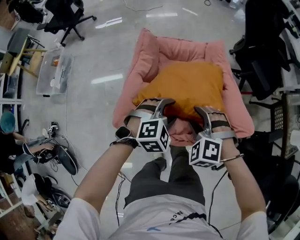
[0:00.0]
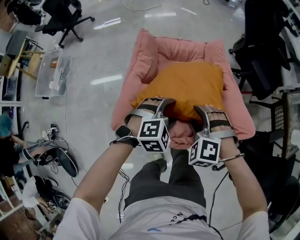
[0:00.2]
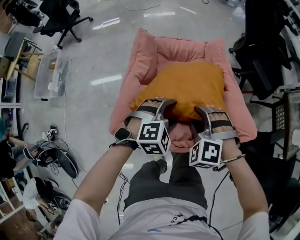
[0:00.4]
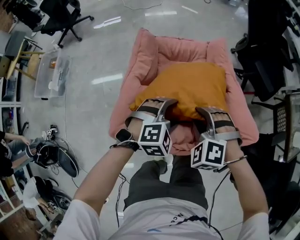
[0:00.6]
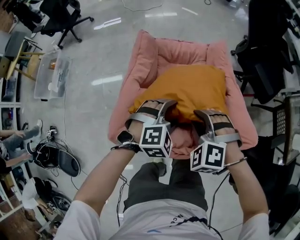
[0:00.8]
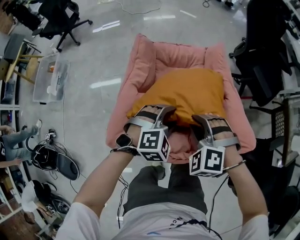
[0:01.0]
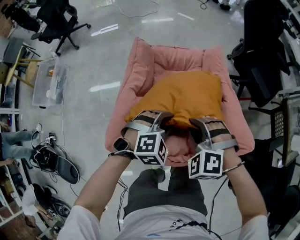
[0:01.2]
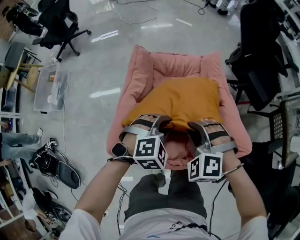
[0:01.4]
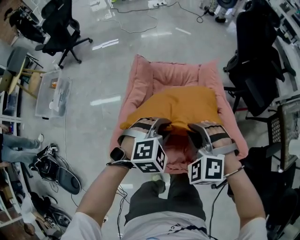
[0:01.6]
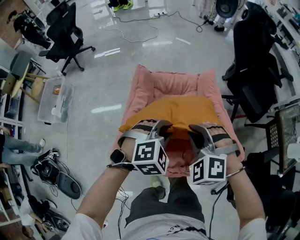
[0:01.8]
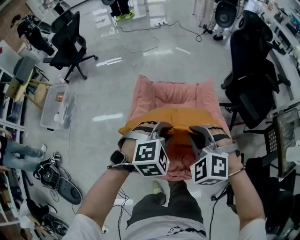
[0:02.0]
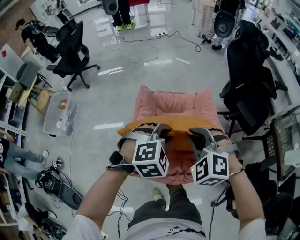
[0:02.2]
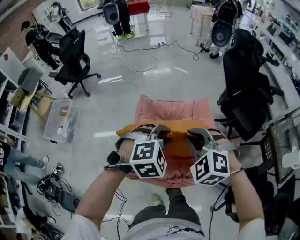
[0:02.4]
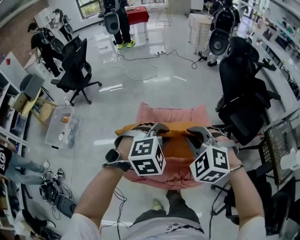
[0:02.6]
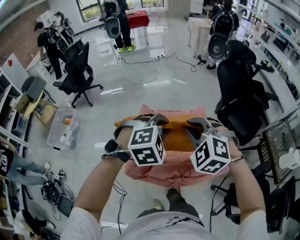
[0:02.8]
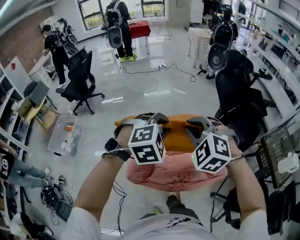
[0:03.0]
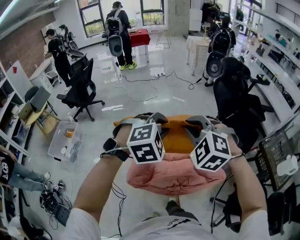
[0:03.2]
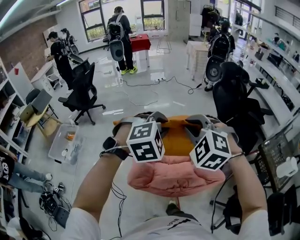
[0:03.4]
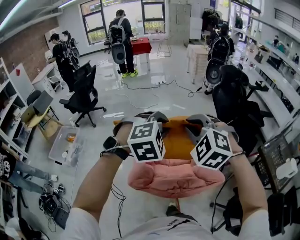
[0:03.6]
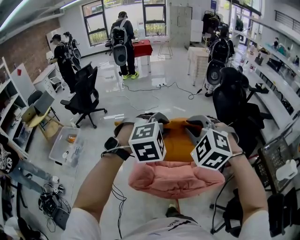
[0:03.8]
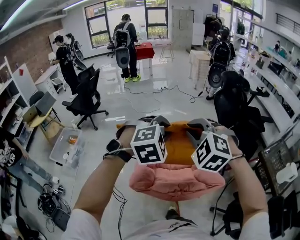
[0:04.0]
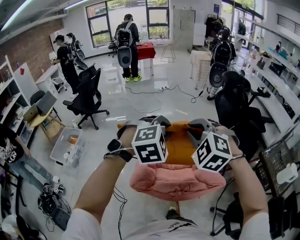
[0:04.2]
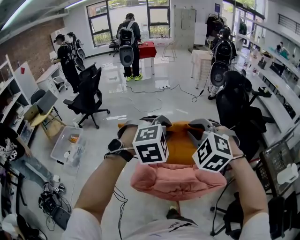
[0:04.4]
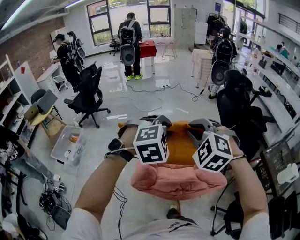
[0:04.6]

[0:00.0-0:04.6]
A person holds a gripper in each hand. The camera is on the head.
0:00.0 to 0:01.6: The left gripper travels forward by approximately 5 cm, and closes; the right gripper heads forward and upward, covering some 10 cm, and closes up.
0:01.6 to 0:03.0: The grippers both shift upward by approximately 30 cm.
0:03.0 to 0:04.6: The grippers both shift upward by about 5 cm.

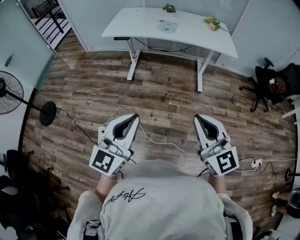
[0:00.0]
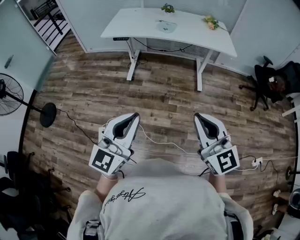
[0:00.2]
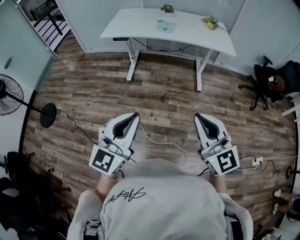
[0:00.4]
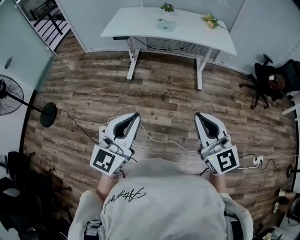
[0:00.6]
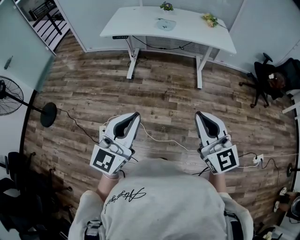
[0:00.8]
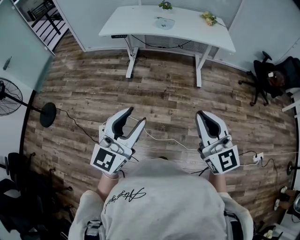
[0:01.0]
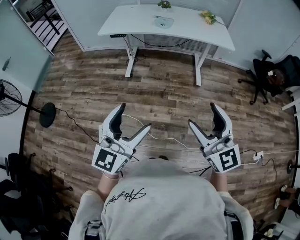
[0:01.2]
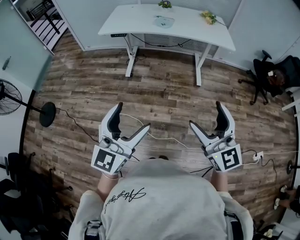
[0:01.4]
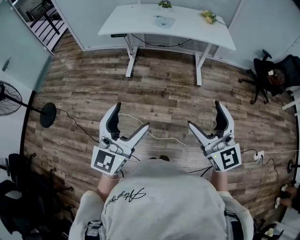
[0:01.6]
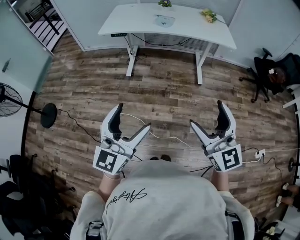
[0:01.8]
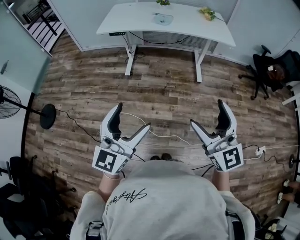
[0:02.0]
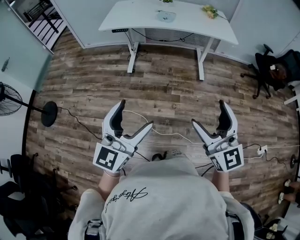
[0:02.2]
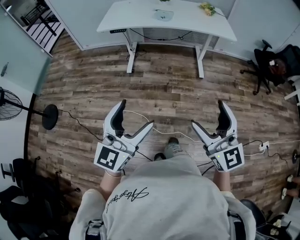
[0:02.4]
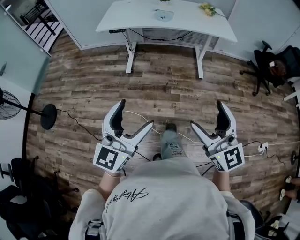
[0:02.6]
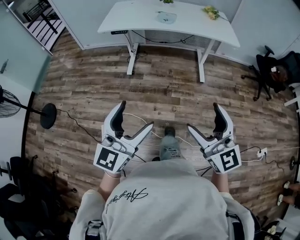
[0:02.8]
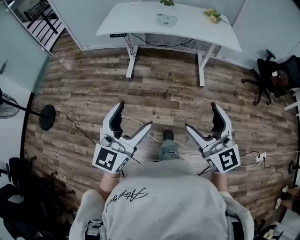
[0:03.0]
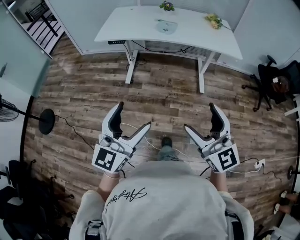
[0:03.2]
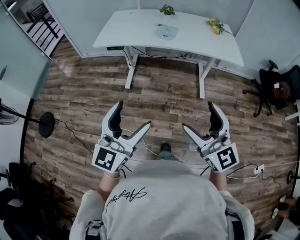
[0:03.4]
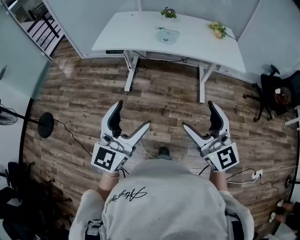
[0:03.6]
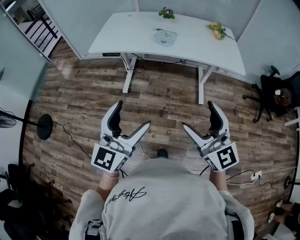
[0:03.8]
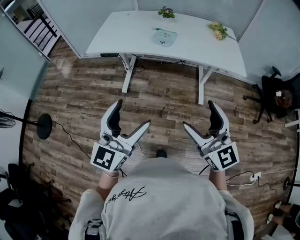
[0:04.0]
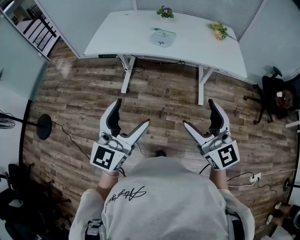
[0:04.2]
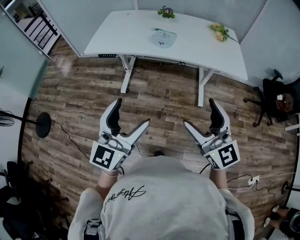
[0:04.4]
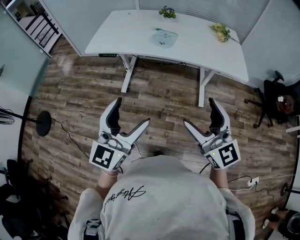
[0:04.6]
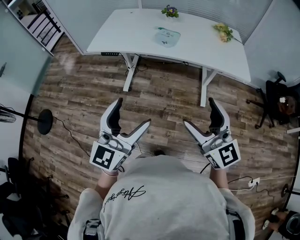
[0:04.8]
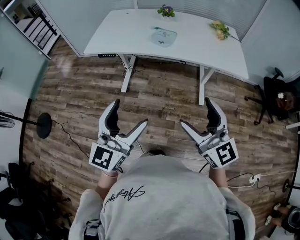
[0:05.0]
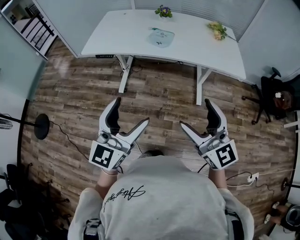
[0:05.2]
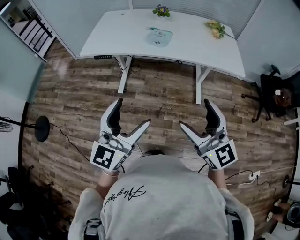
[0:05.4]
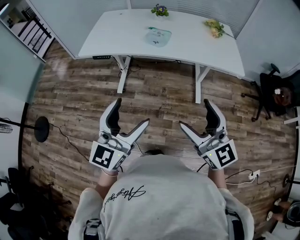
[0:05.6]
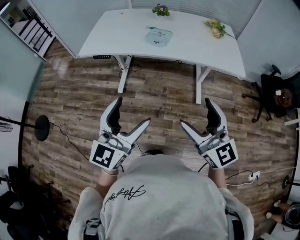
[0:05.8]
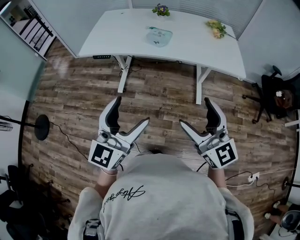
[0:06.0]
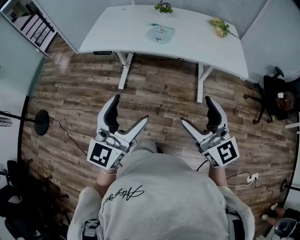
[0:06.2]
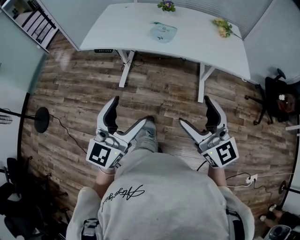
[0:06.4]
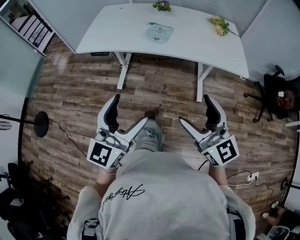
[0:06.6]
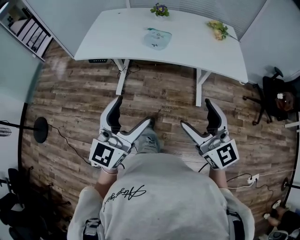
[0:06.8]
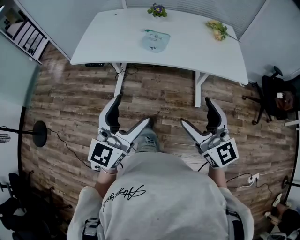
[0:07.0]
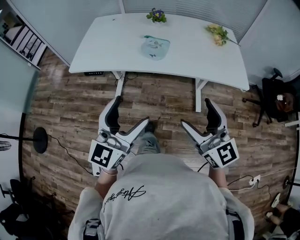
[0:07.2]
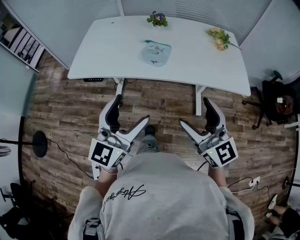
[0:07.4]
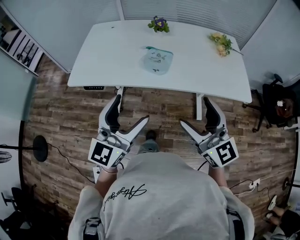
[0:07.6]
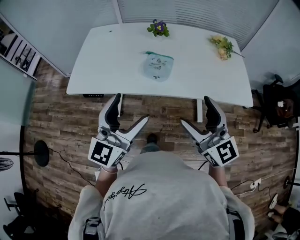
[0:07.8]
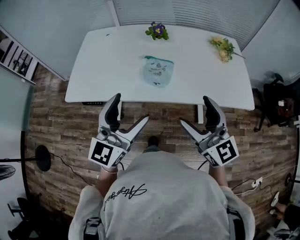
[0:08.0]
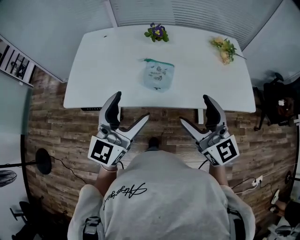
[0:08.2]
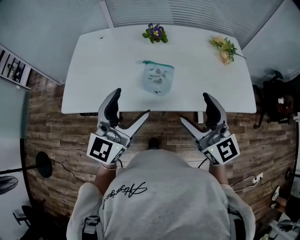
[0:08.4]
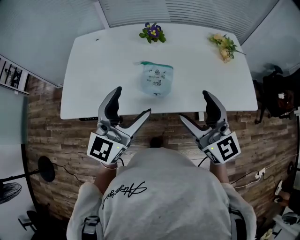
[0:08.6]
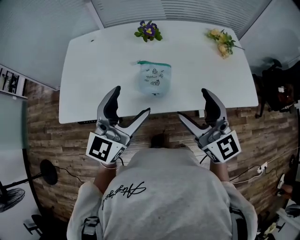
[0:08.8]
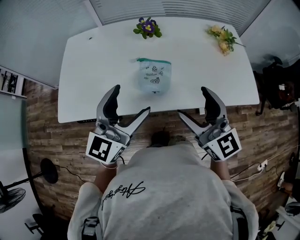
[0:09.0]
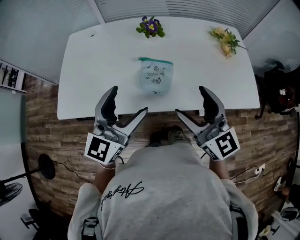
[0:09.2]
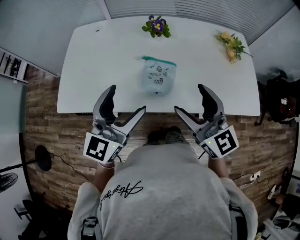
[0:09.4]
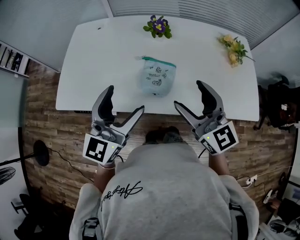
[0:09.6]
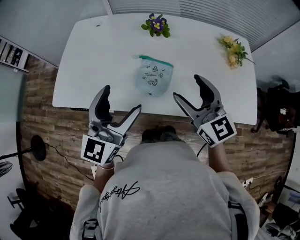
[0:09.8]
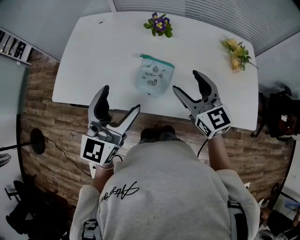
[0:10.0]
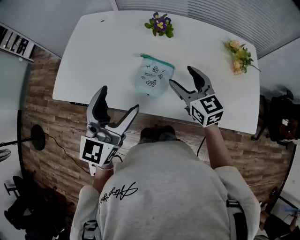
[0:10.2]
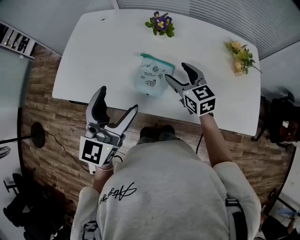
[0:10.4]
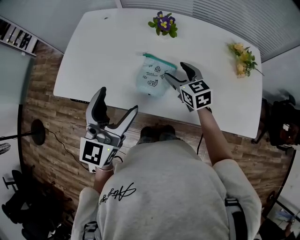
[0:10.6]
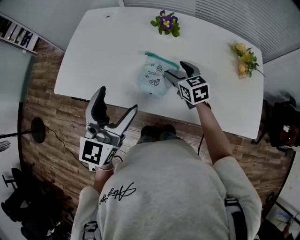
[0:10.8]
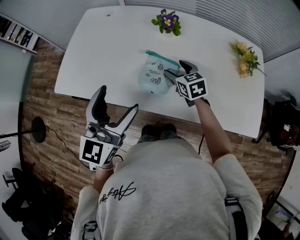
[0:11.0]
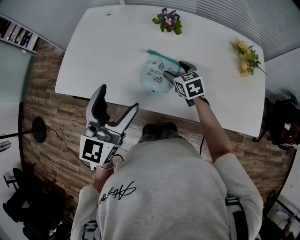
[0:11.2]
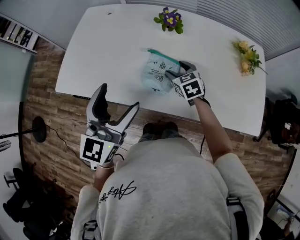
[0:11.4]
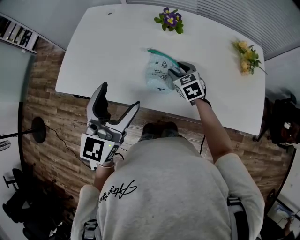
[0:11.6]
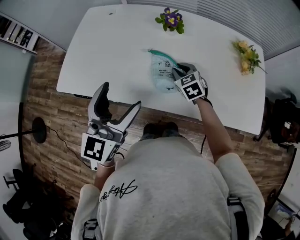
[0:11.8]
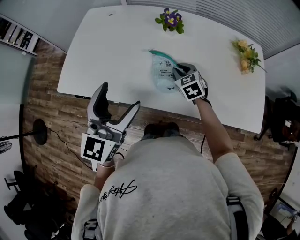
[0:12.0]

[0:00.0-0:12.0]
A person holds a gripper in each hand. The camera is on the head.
0:00.0 to 0:01.6: The left gripper opens. The right gripper opens its fingers.
0:01.6 to 0:03.0: Both grippers move forward, roughly 5 cm.
0:03.0 to 0:04.4: The grippers both shift forward by roughly 25 cm.
0:04.4 to 0:06.0: There are only small adjustments of the grippers.
0:06.0 to 0:07.6: The two grippers go roughly 20 cm forward.
0:07.6 to 0:09.0: Both grippers travel together forward, some 20 cm.
0:09.0 to 0:10.4: The right gripper moves forward and downward, roughly 20 cm, and swivels roughly 30 degrees; the left gripper swivels approximately 20 degrees.
0:10.4 to 0:12.0: The right gripper is displaced downward by some 10 cm, changes its angle by roughly 30 degrees, and closes.

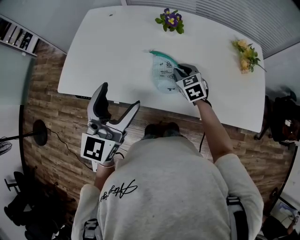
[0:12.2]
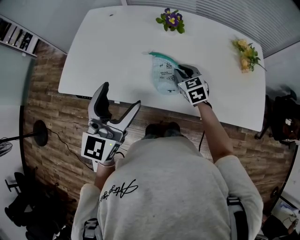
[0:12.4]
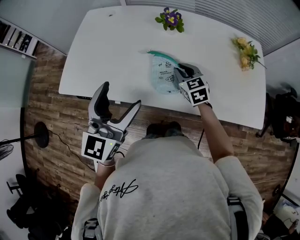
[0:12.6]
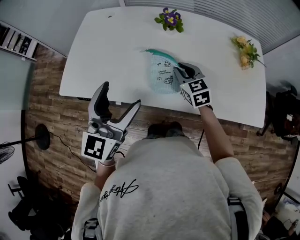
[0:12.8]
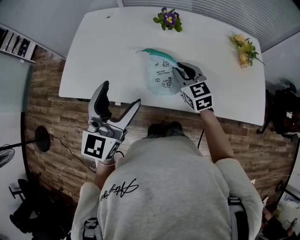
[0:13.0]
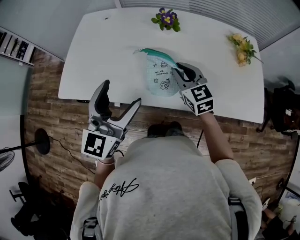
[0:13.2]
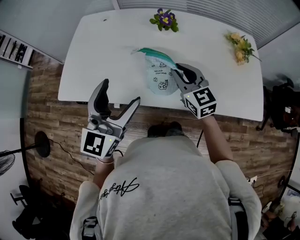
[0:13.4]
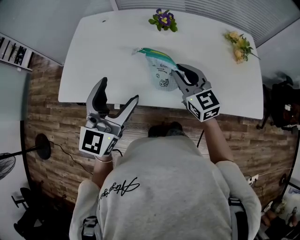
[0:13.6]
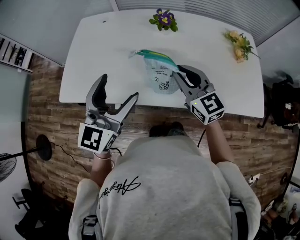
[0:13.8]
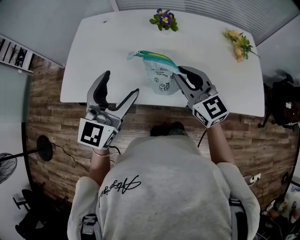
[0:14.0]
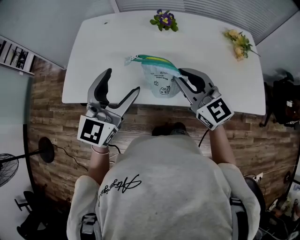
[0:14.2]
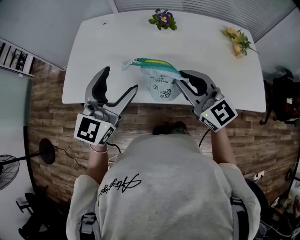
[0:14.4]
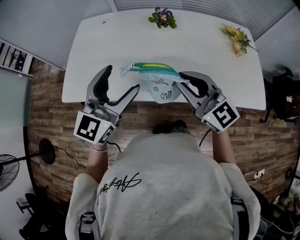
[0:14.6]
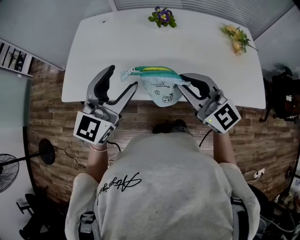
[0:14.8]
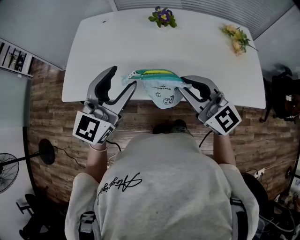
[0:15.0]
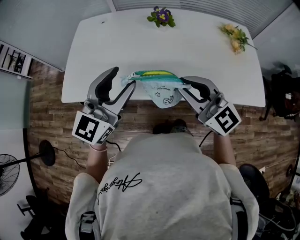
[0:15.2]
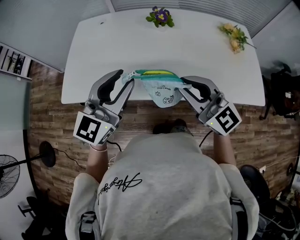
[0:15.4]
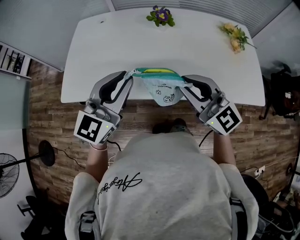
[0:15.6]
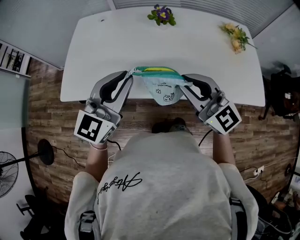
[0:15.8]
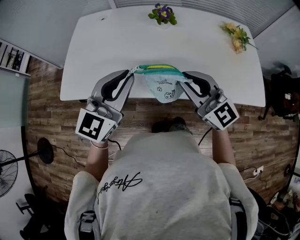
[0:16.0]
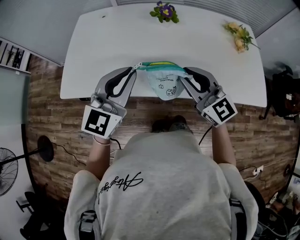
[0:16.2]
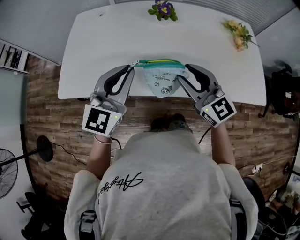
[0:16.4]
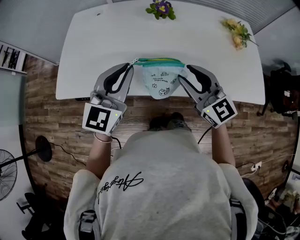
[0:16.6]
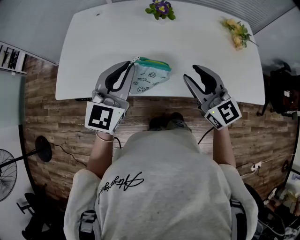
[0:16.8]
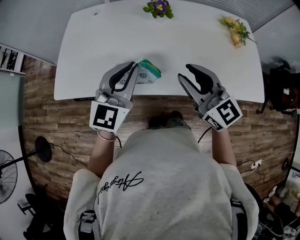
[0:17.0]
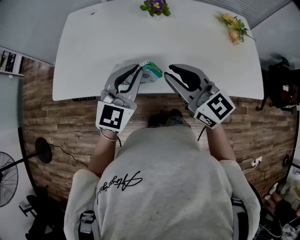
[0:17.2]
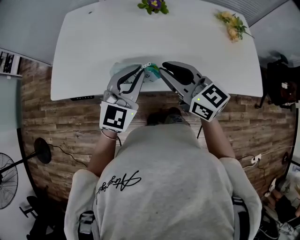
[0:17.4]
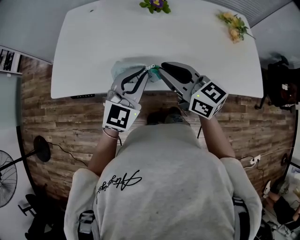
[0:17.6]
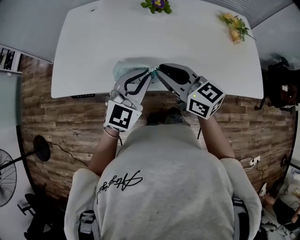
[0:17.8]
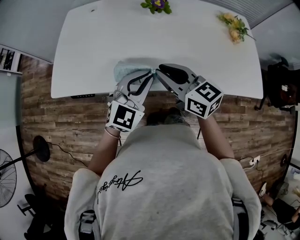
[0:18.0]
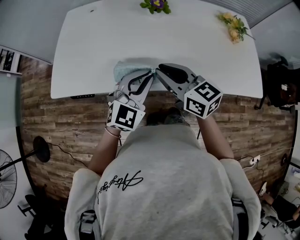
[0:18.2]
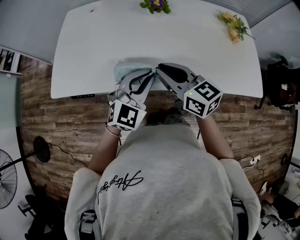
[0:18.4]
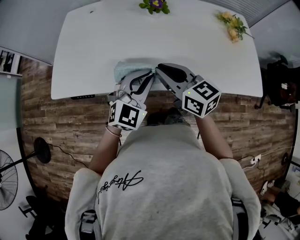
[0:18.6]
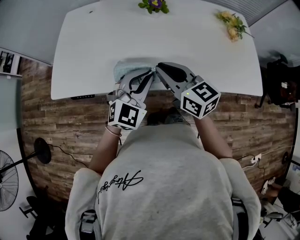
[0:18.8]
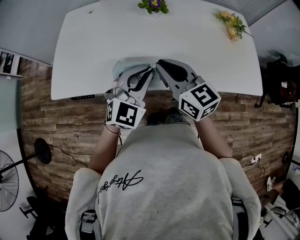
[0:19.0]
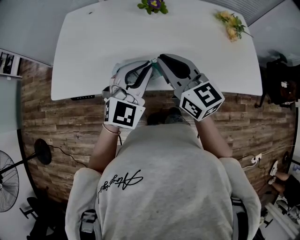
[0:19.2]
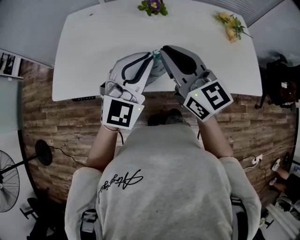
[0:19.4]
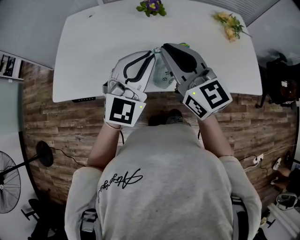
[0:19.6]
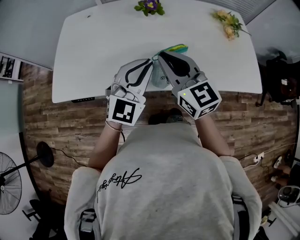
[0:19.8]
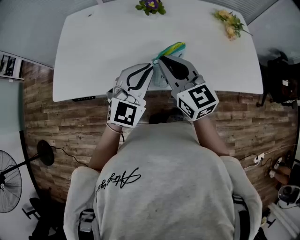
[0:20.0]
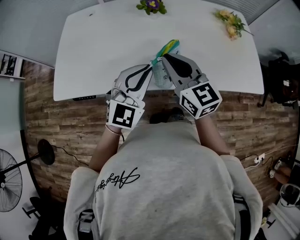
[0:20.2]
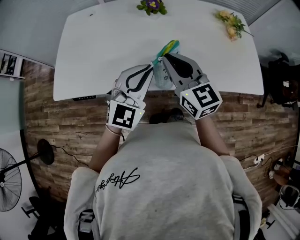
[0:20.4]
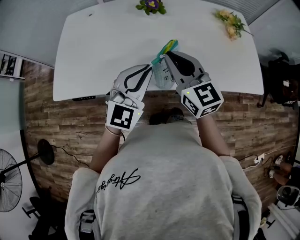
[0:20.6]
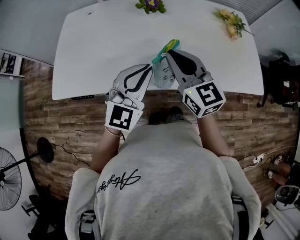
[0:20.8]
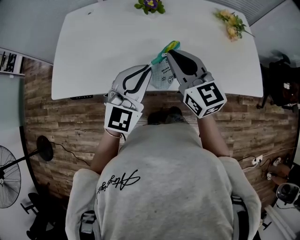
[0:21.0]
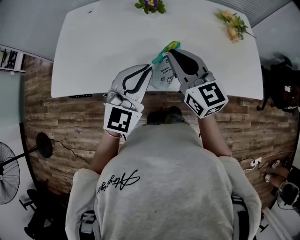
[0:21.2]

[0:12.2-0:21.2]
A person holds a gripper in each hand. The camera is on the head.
0:12.2 to 0:13.8: The right gripper travels upward and backward by approximately 20 cm, and tips its fingers upward by roughly 30 degrees.
0:13.8 to 0:15.2: The right gripper shifts roughly 10 cm backward and upward. Meanwhile the left gripper closes its fingers.
0:15.2 to 0:16.6: The right gripper heads downward, covering about 5 cm; the left gripper changes place by some 5 cm, and closes up.
0:16.6 to 0:18.2: The left gripper goes some 10 cm downward and to the right; the right gripper shifts about 5 cm to the left, and swivels roughly 20 degrees.
0:18.2 to 0:19.8: The two grippers go approximately 5 cm upward. The right gripper changes its angle by approximately 20 degrees.
0:19.8 to 0:21.2: The grippers move only a little.
